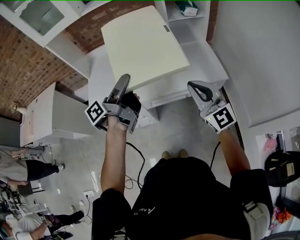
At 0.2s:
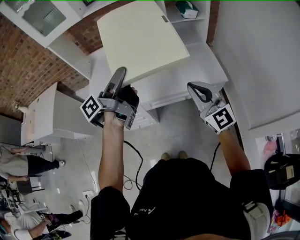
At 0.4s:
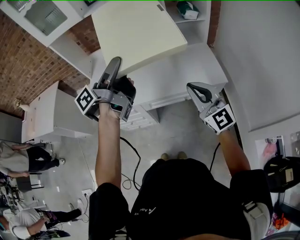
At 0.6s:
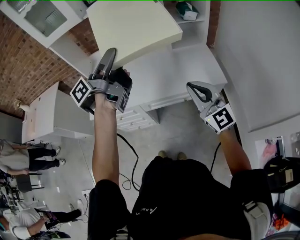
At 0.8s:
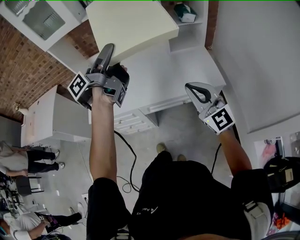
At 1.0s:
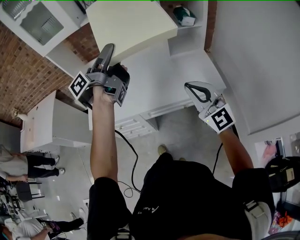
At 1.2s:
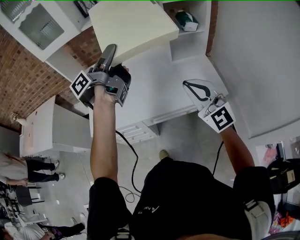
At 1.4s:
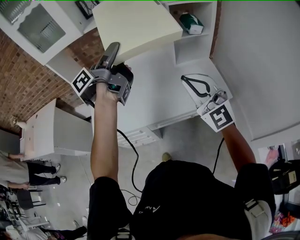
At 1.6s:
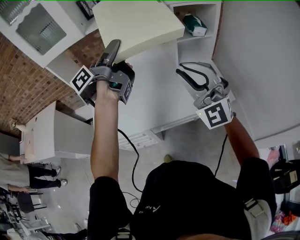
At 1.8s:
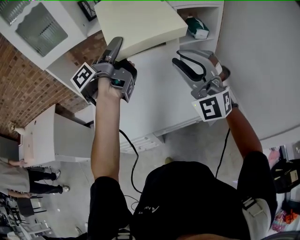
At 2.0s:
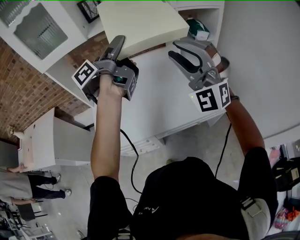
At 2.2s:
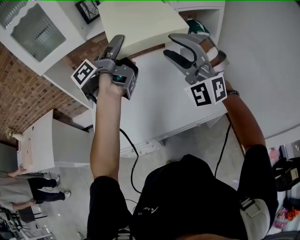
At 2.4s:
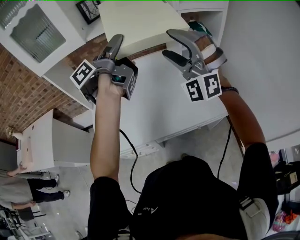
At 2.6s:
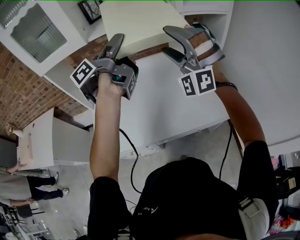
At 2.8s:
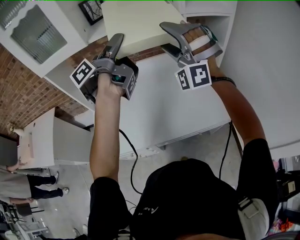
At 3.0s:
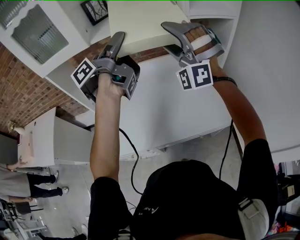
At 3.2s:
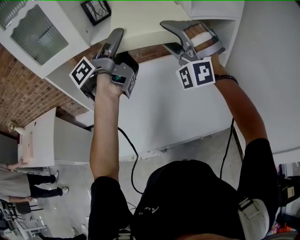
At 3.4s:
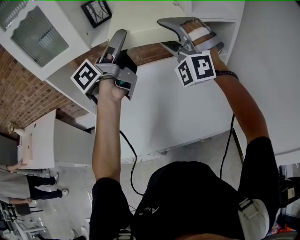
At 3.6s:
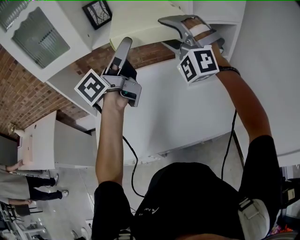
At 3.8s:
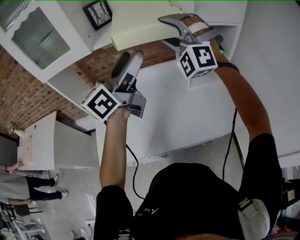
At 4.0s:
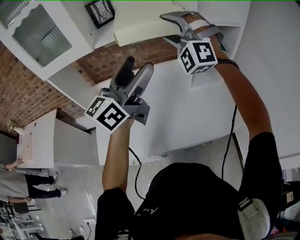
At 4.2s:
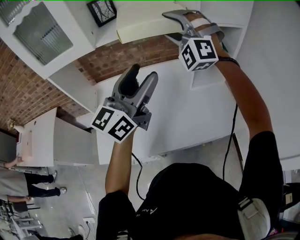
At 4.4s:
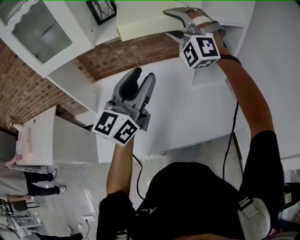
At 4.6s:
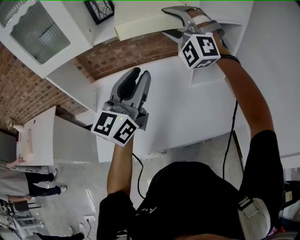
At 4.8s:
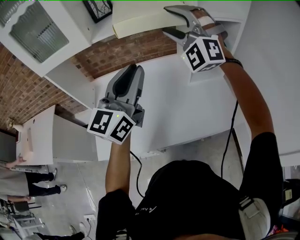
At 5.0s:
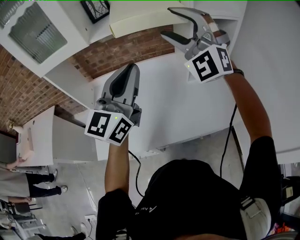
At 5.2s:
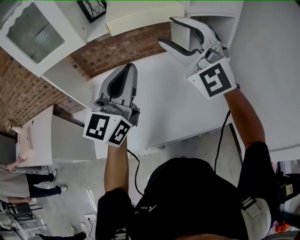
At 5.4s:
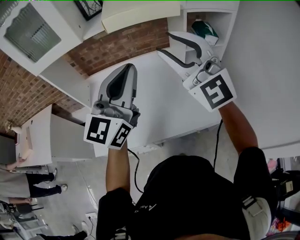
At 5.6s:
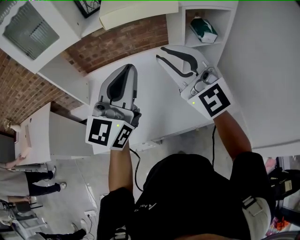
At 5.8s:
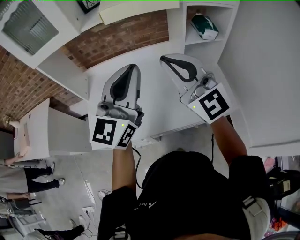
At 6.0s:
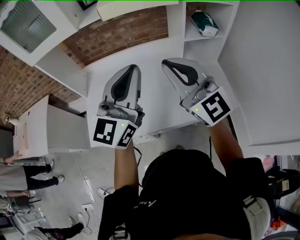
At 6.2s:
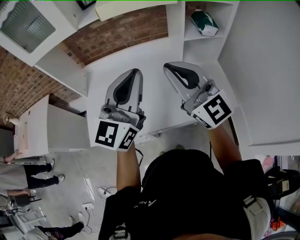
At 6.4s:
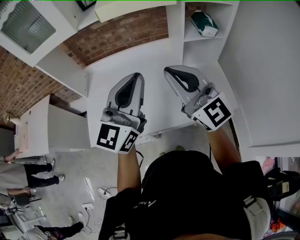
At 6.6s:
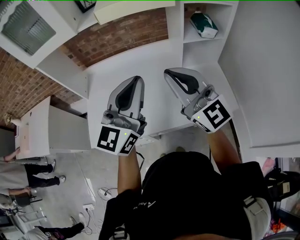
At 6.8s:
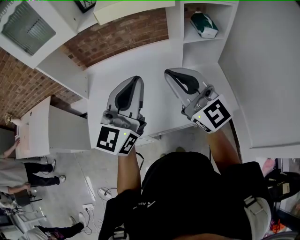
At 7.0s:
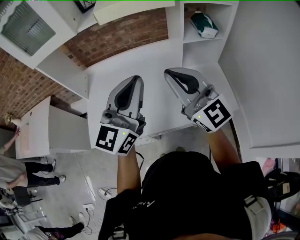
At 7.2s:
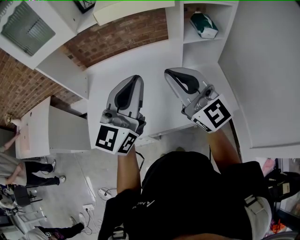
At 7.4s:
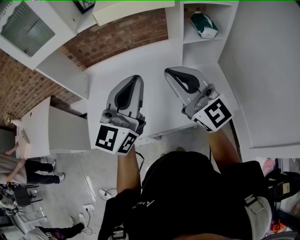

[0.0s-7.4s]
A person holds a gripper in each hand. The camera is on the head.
0.0s to 1.4s: The right gripper is displaced forward and upward by about 15 cm. Meanwhile the left gripper is displaced forward and upward by some 20 cm.
1.4s to 3.0s: The left gripper goes about 10 cm forward, while the right gripper moves forward and to the left, about 25 cm, rolls counterclockwise, seen from behind, by roughly 60 degrees, and opens.
3.0s to 4.4s: The left gripper shifts roughly 5 cm backward, and rotates around the line of its fingers by about 70 degrees, clockwise from behind, while the right gripper moves forward, roughly 10 cm.
4.4s to 6.0s: The right gripper goes about 20 cm backward, rotates around the line of its fingers by roughly 70 degrees, clockwise from behind, and closes. Meanwhile the left gripper is displaced backward by some 5 cm, and closes up.
6.0s to 7.4s: The grippers make only small movements.

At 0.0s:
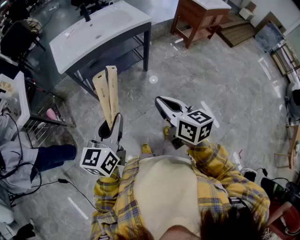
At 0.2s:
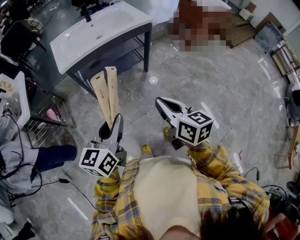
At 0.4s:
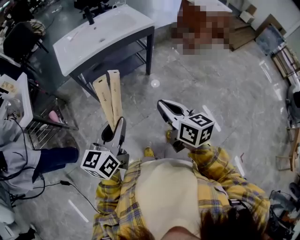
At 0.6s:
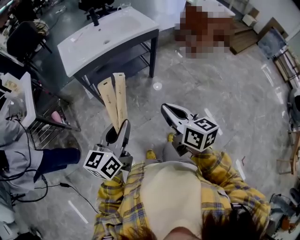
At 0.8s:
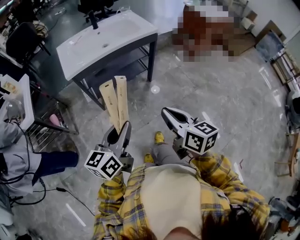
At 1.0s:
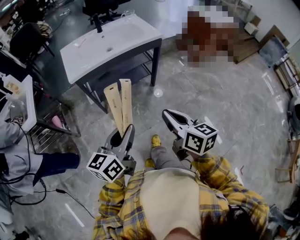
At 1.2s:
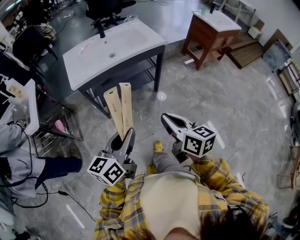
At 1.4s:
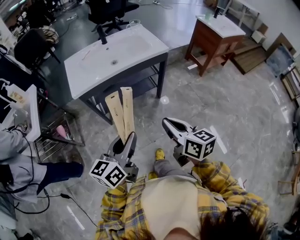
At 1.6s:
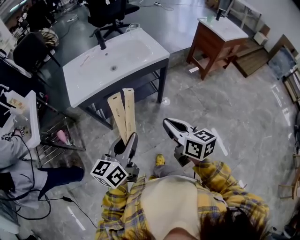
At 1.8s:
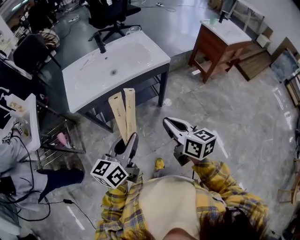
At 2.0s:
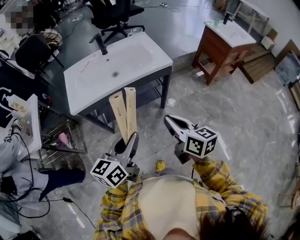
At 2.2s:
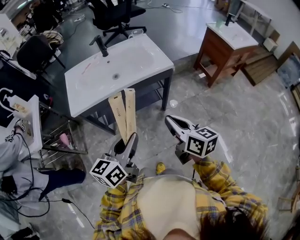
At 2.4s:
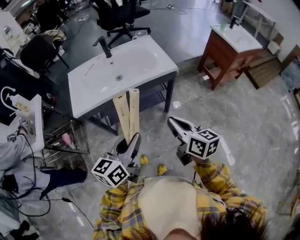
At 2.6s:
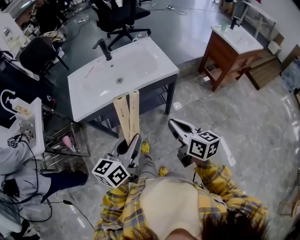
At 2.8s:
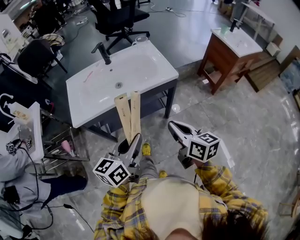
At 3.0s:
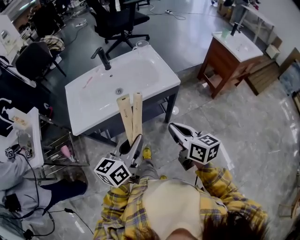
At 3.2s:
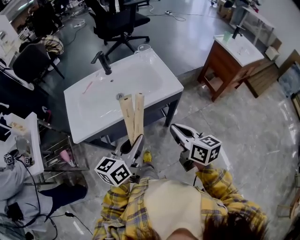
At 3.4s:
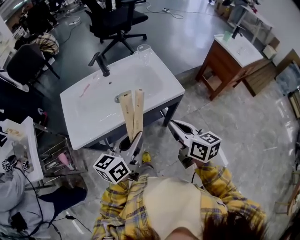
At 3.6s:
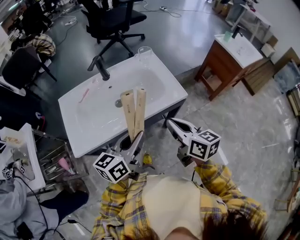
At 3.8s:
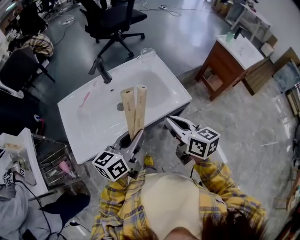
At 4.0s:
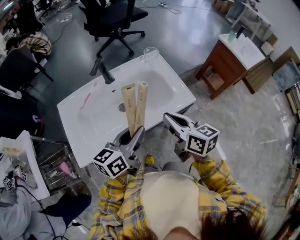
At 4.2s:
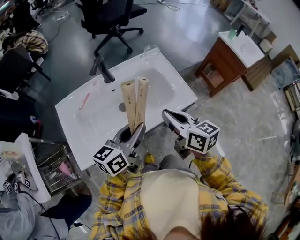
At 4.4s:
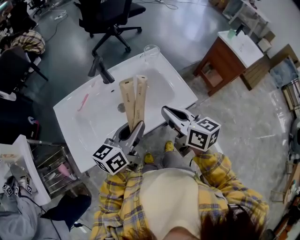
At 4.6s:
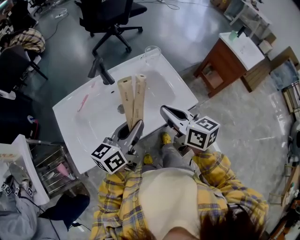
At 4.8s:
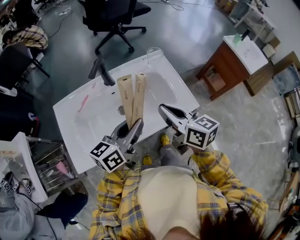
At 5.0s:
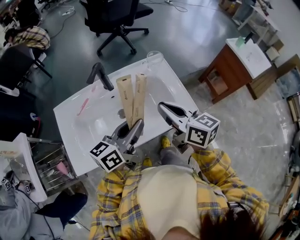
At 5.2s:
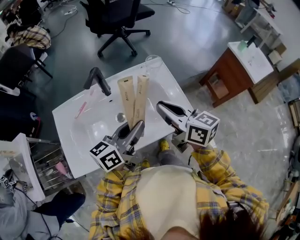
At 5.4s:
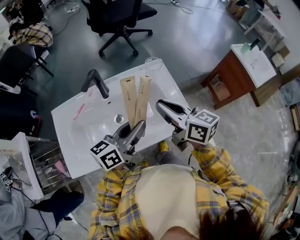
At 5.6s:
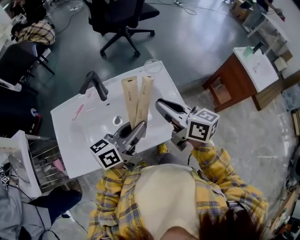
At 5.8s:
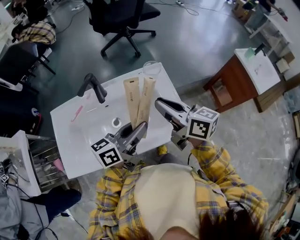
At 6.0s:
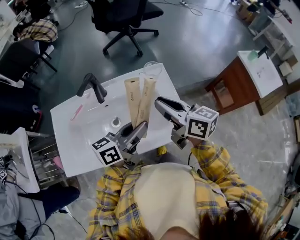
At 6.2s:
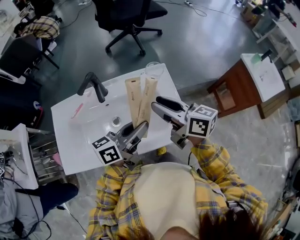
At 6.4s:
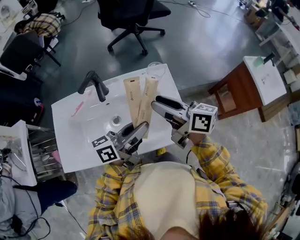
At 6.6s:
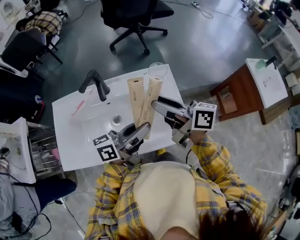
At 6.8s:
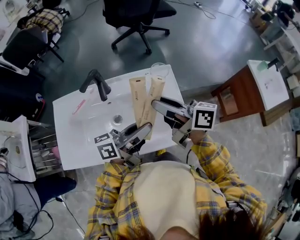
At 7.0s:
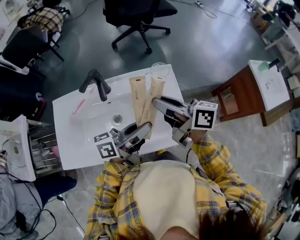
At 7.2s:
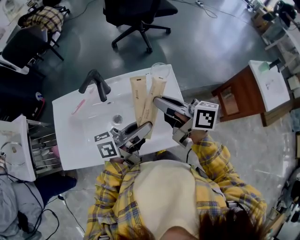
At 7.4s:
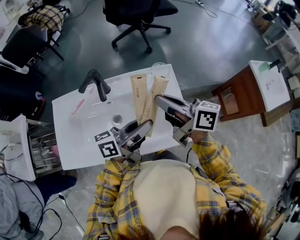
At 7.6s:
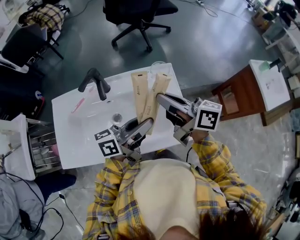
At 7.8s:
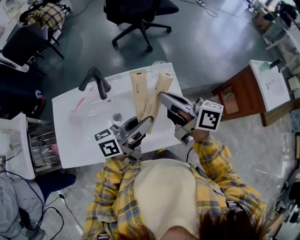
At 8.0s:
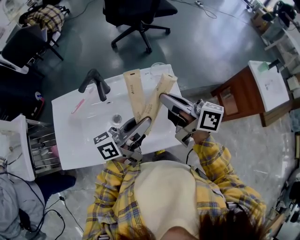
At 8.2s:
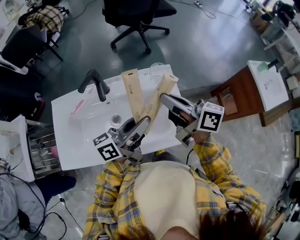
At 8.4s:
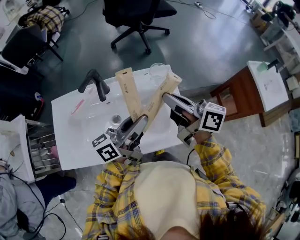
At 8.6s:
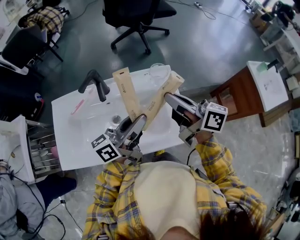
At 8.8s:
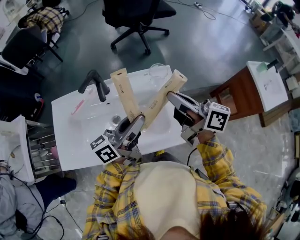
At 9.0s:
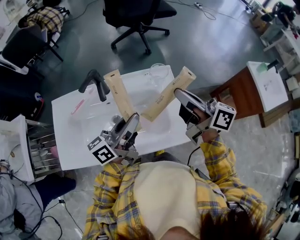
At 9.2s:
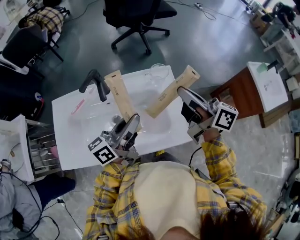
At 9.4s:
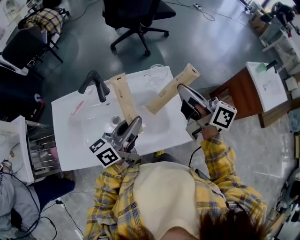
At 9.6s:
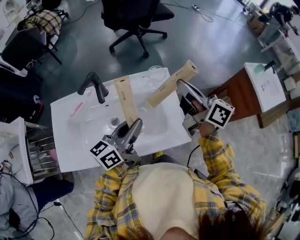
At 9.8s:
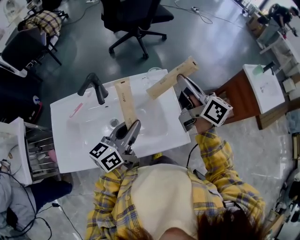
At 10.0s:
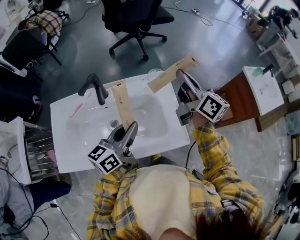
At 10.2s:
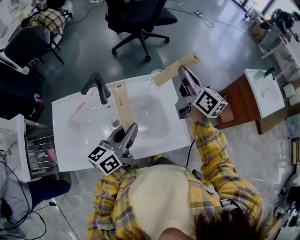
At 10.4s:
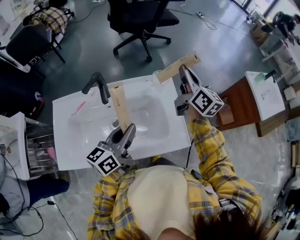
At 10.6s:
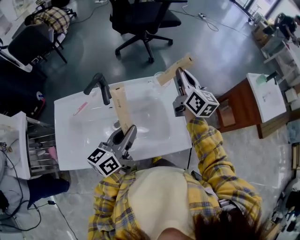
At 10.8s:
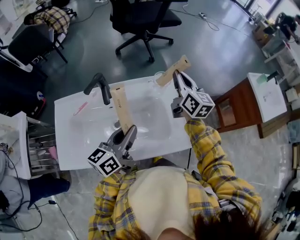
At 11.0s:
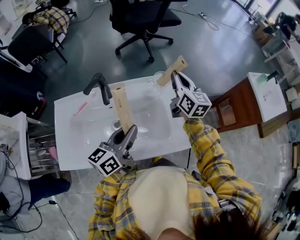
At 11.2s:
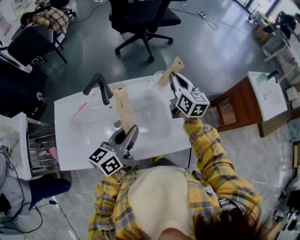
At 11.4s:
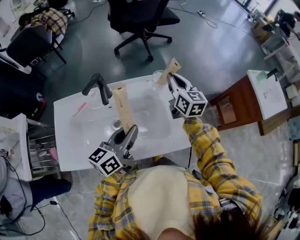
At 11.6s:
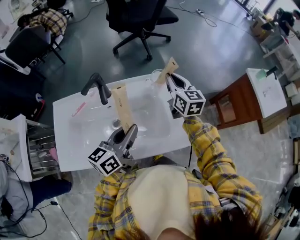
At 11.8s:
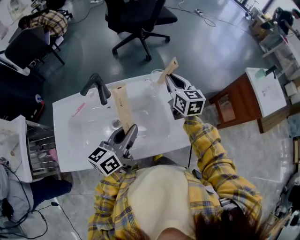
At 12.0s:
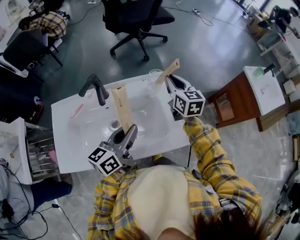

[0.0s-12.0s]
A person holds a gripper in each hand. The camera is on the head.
0.0s to 1.6s: The grippers both shift forward by roughly 15 cm.
1.6s to 3.0s: The two grippers go some 20 cm forward.
3.0s to 4.4s: The left gripper shifts some 25 cm forward; the right gripper moves forward and to the left, about 25 cm.
4.4s to 6.0s: The right gripper is displaced forward by roughly 15 cm; the left gripper travels forward and to the right by some 15 cm.
6.0s to 7.6s: The right gripper opens, then closes again.
7.6s to 9.0s: The right gripper ends up about 5 cm from where it was, while the left gripper travels to the left by about 5 cm.
9.0s to 10.4s: The right gripper moves forward, about 10 cm, and changes its angle by about 40 degrees.
10.4s to 12.0s: The right gripper heads downward, covering about 10 cm, and changes its angle by approximately 30 degrees.

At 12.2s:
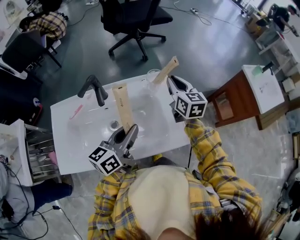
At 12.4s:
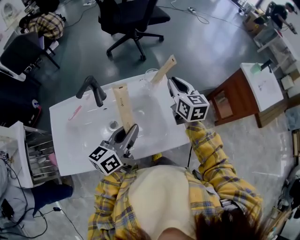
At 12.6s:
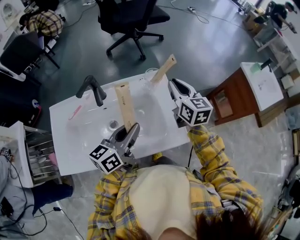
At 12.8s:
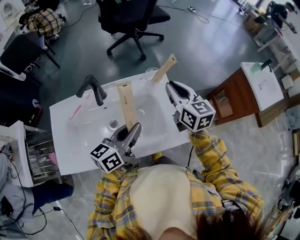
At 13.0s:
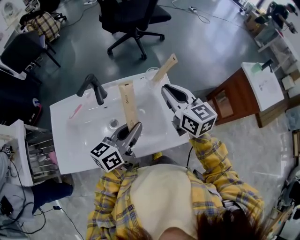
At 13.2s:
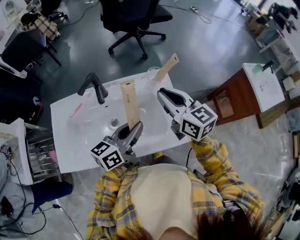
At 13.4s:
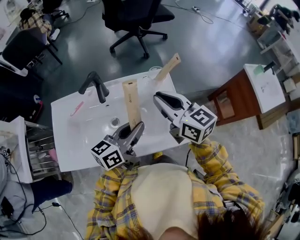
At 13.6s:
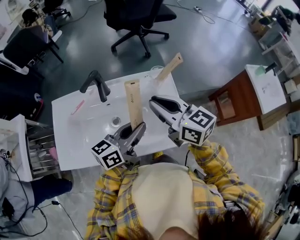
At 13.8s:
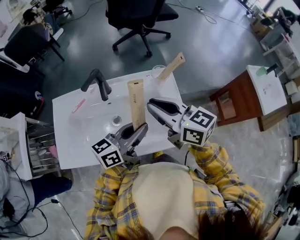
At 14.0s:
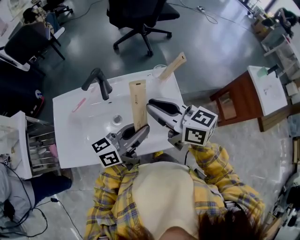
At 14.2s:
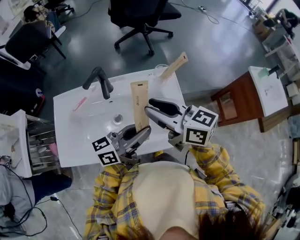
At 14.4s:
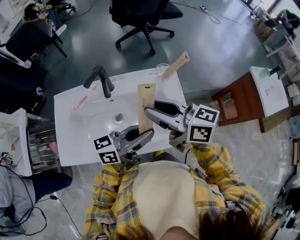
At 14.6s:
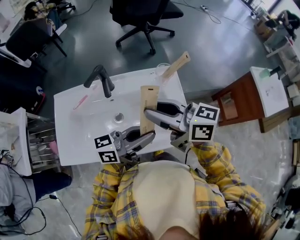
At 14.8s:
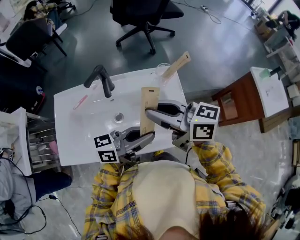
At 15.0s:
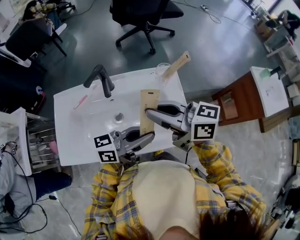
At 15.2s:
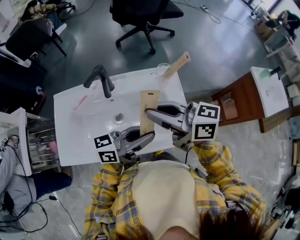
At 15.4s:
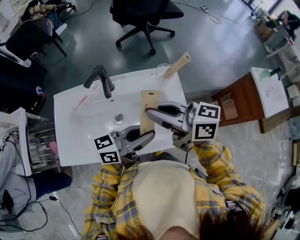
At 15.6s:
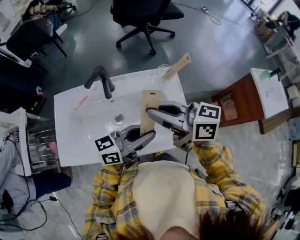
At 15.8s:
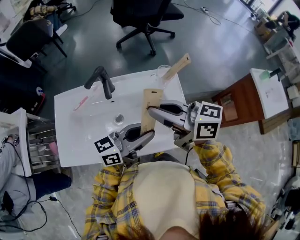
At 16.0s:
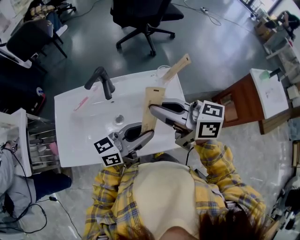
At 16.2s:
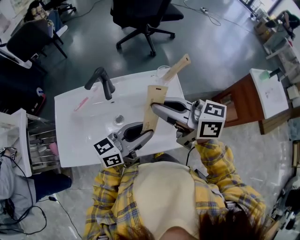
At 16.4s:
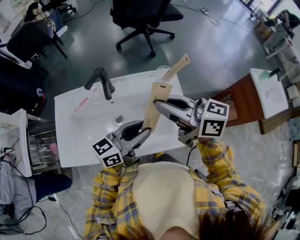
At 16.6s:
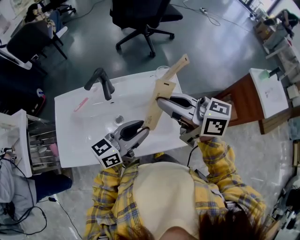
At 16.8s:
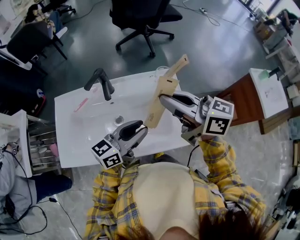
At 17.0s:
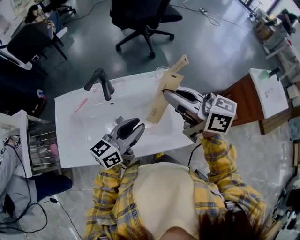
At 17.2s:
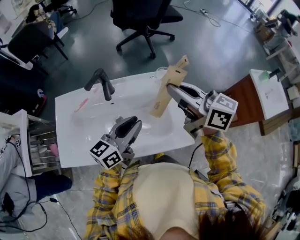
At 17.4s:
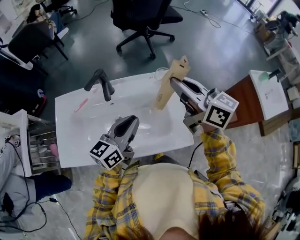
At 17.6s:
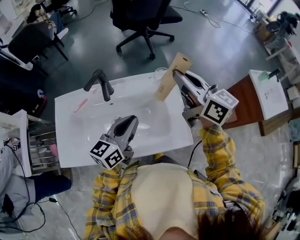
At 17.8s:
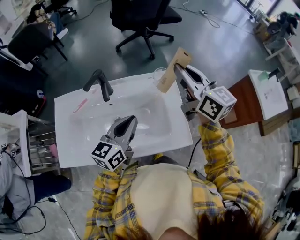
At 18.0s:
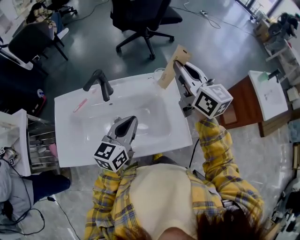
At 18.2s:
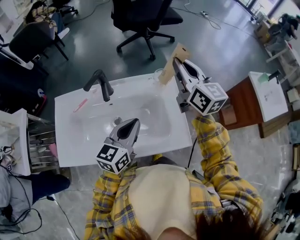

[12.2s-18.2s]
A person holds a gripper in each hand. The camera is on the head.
12.2s to 13.8s: The right gripper is displaced backward, to the left and upward by approximately 20 cm, and changes its angle by roughly 40 degrees.
13.8s to 15.2s: The right gripper changes its angle by some 20 degrees.
15.2s to 16.6s: The grippers stay close to where they were, moving slightly.
16.6s to 18.2s: The left gripper swivels about 30 degrees, and closes its fingers. Meanwhile the right gripper heads forward and to the right, covering approximately 15 cm, and swivels about 40 degrees.
